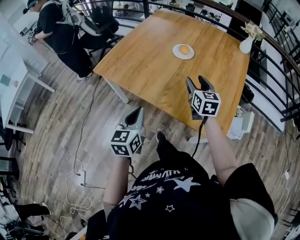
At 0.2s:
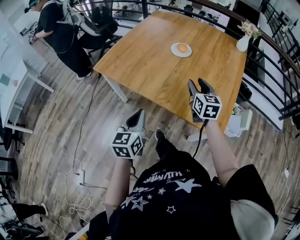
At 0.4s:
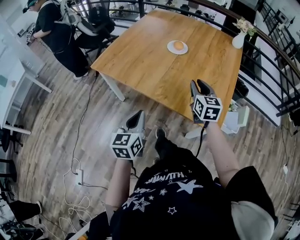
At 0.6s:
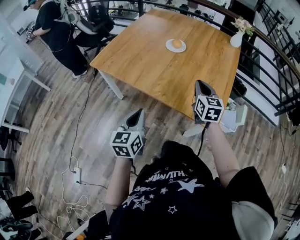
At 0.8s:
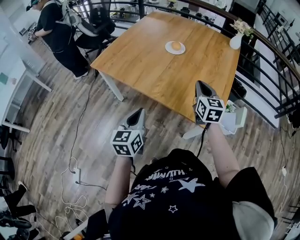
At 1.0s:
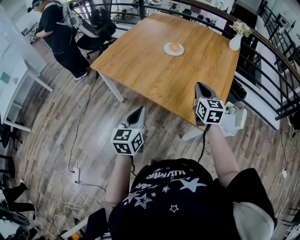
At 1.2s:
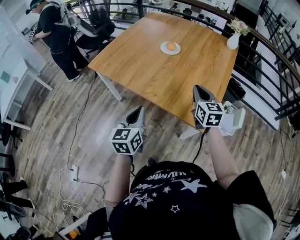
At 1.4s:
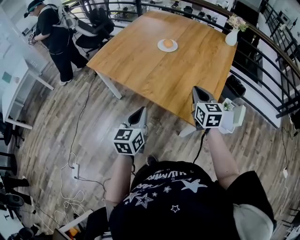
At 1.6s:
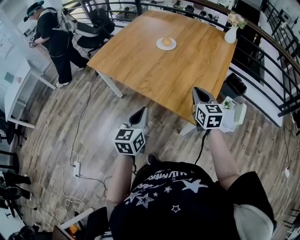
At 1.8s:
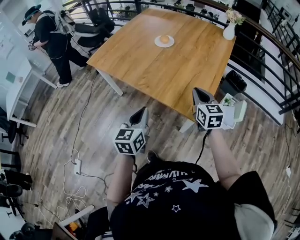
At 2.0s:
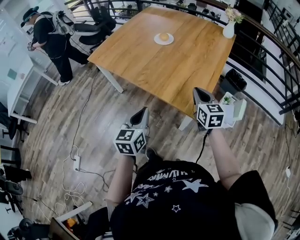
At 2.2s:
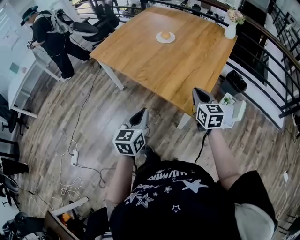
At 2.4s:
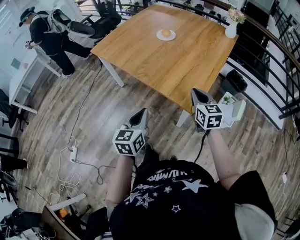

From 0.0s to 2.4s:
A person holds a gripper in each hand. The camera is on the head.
From 0.0s to 1.2s: The left gripper is displaced to the right and backward by some 10 cm. Meanwhile the right gripper goes about 15 cm backward and to the right, and closes up.
From 1.2s to 2.4s: The left gripper goes roughly 20 cm to the right and backward. Meanwhile the right gripper travels backward and to the right by roughly 15 cm.

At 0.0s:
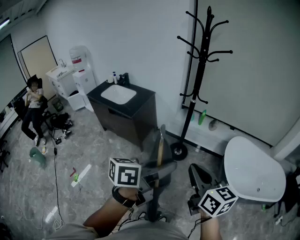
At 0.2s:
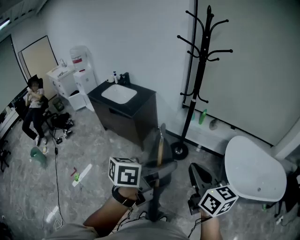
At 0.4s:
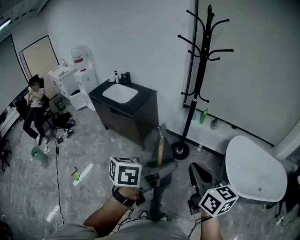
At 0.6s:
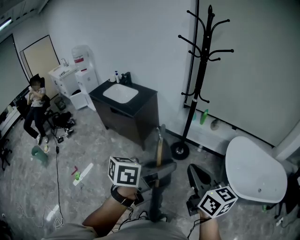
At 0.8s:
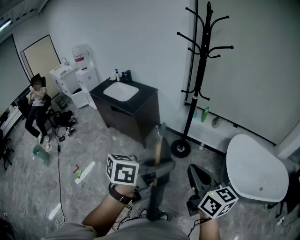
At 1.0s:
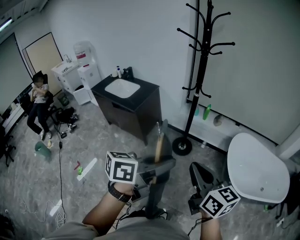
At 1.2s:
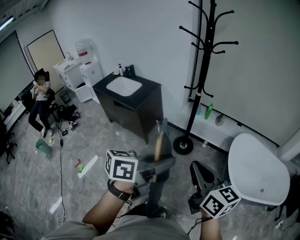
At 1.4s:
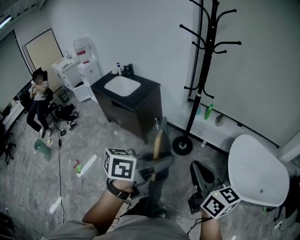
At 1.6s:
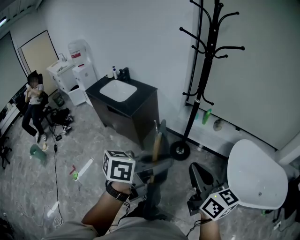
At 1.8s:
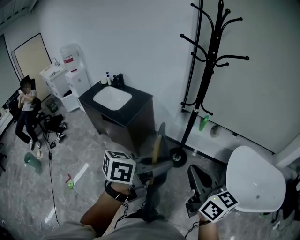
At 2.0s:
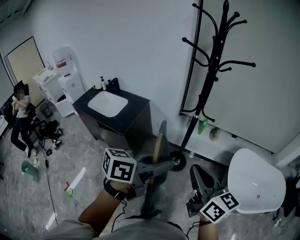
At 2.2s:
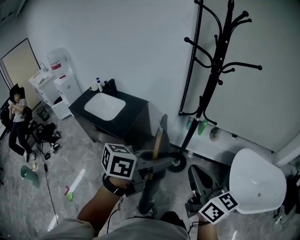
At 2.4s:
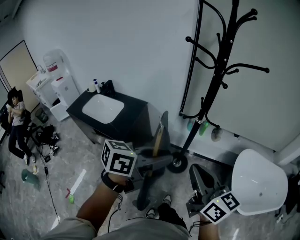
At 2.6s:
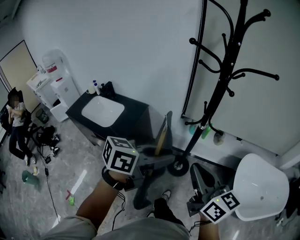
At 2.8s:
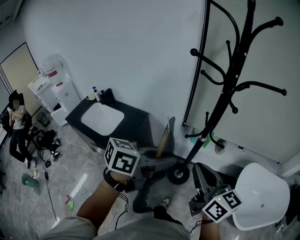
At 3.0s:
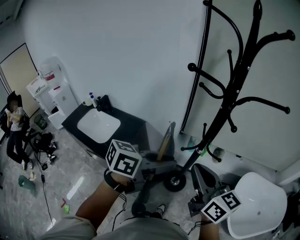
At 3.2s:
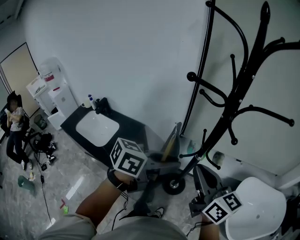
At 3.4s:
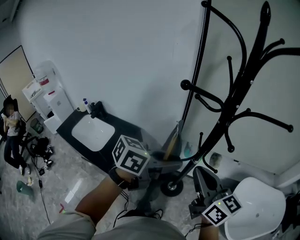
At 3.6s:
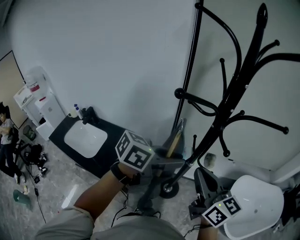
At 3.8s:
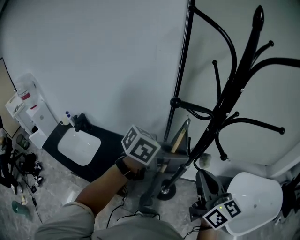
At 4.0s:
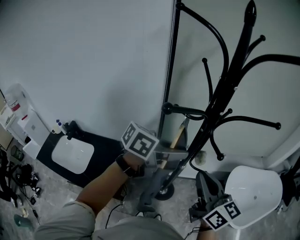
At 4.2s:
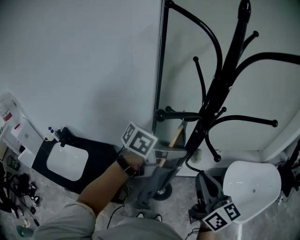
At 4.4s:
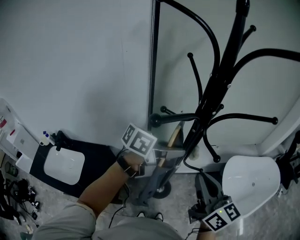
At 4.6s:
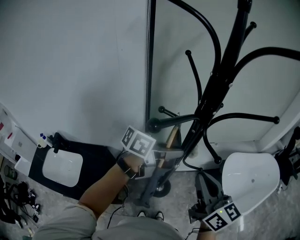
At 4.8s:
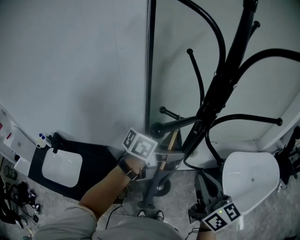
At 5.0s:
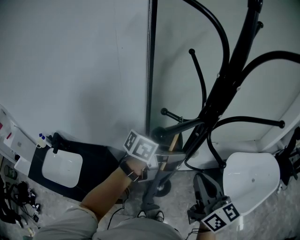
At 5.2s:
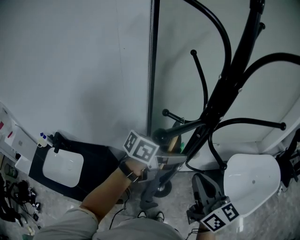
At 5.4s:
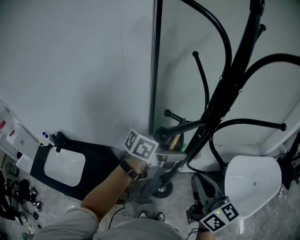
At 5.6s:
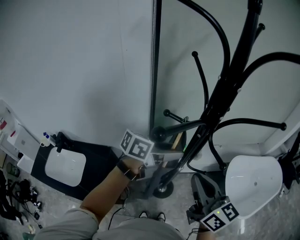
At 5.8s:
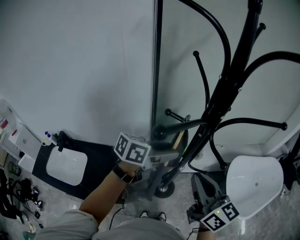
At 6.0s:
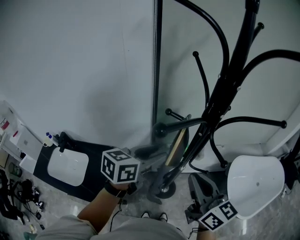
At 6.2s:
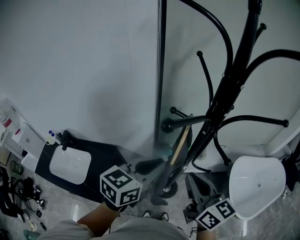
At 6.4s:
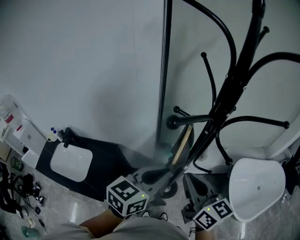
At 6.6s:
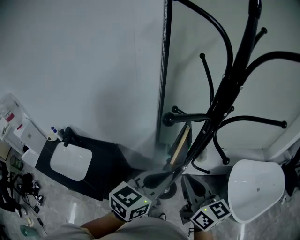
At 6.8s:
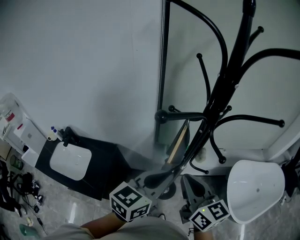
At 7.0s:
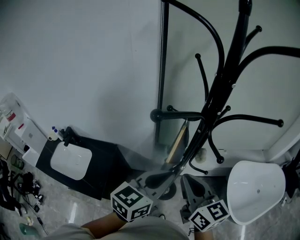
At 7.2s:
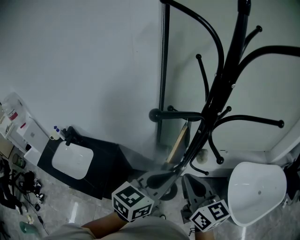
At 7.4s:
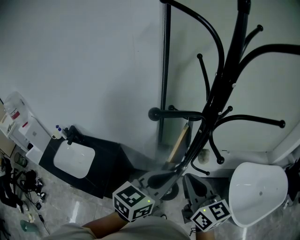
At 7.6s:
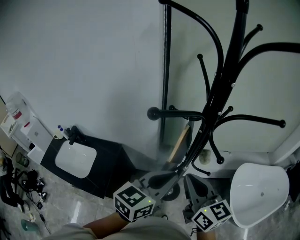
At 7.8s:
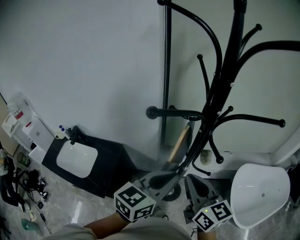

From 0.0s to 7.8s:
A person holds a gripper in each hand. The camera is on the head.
From 0.0s to 1.6s: The grippers both shift forward by approximately 10 cm.
From 1.6s to 3.2s: Both grippers are carried forward and to the left, some 40 cm. The left gripper turns by about 20 degrees.
From 3.2s to 4.6s: The right gripper changes place by some 5 cm, and swivels some 30 degrees. Meanwhile the left gripper moves approximately 20 cm, and changes its angle by roughly 30 degrees.
From 4.6s to 6.2s: The left gripper travels backward and to the left by roughly 10 cm, turns by approximately 40 degrees, and opens, then closes once more. The right gripper travels to the left by approximately 5 cm.
From 6.2s to 7.8s: The left gripper moves to the right and backward, roughly 10 cm.

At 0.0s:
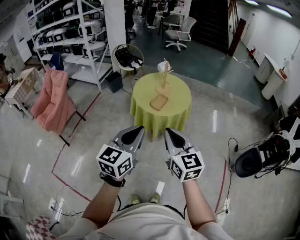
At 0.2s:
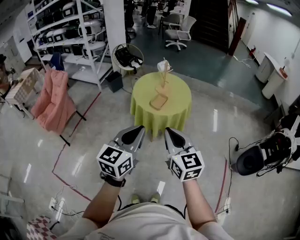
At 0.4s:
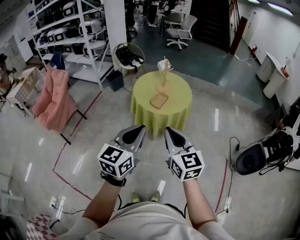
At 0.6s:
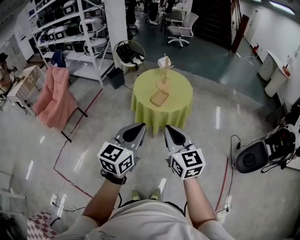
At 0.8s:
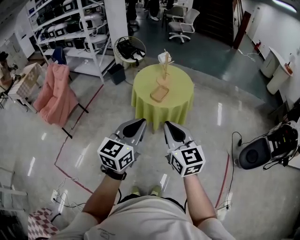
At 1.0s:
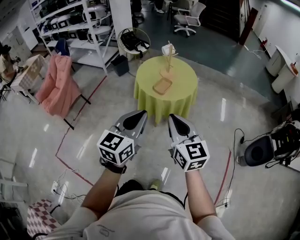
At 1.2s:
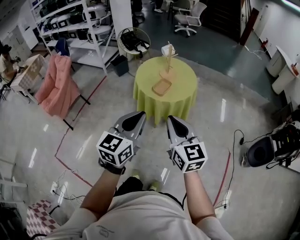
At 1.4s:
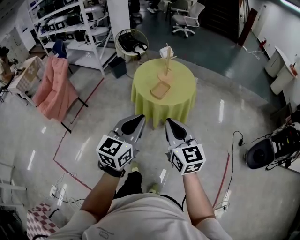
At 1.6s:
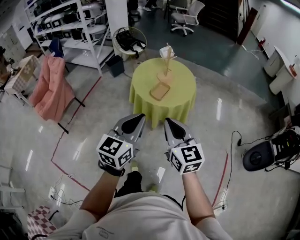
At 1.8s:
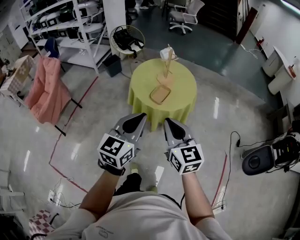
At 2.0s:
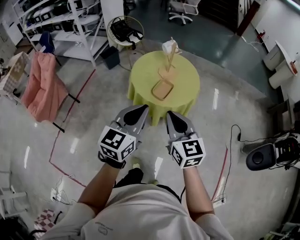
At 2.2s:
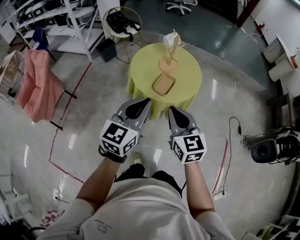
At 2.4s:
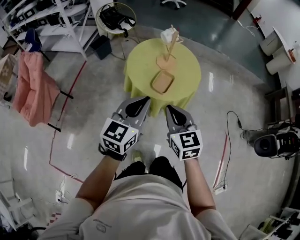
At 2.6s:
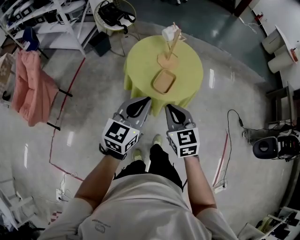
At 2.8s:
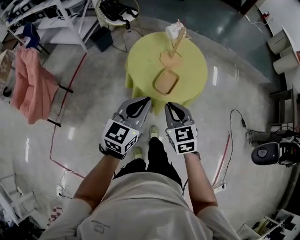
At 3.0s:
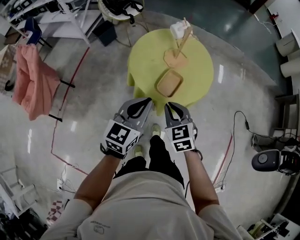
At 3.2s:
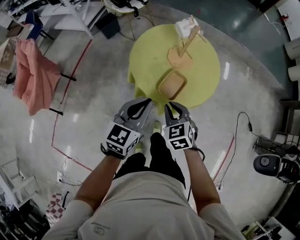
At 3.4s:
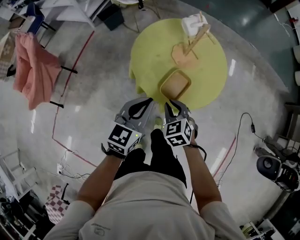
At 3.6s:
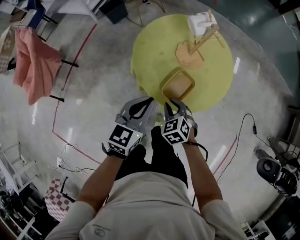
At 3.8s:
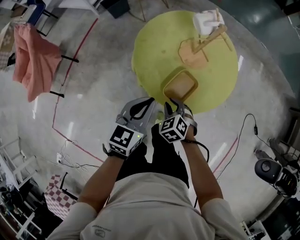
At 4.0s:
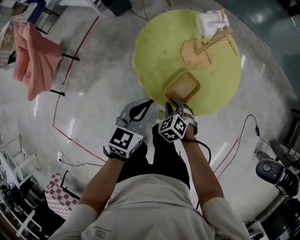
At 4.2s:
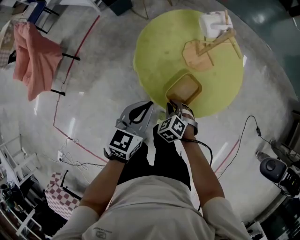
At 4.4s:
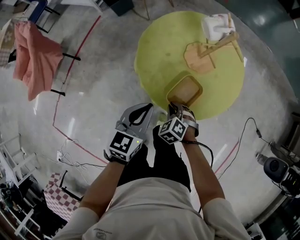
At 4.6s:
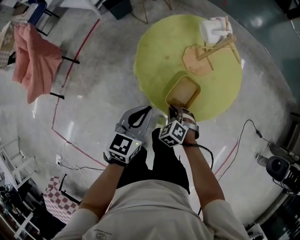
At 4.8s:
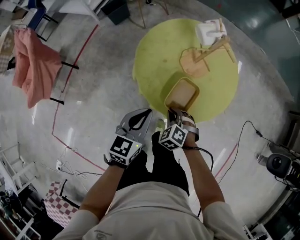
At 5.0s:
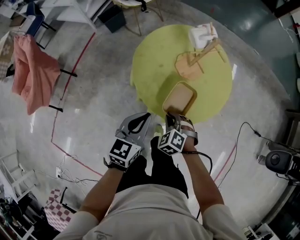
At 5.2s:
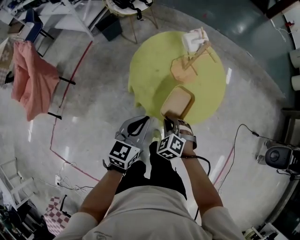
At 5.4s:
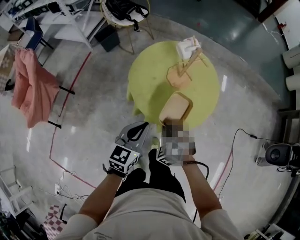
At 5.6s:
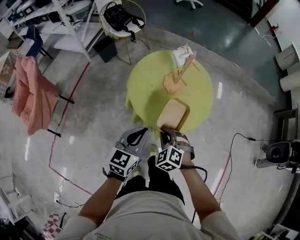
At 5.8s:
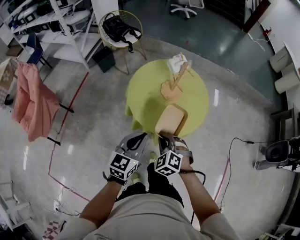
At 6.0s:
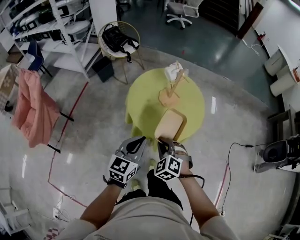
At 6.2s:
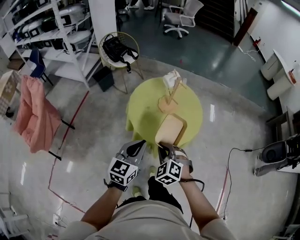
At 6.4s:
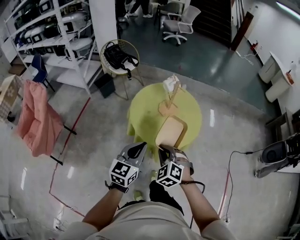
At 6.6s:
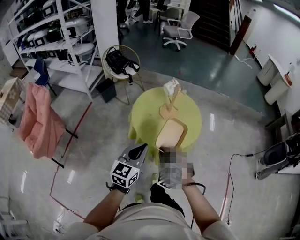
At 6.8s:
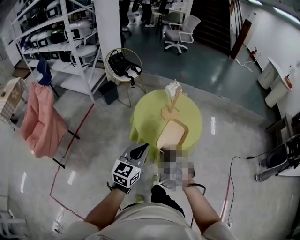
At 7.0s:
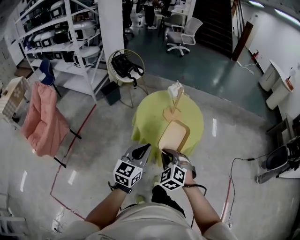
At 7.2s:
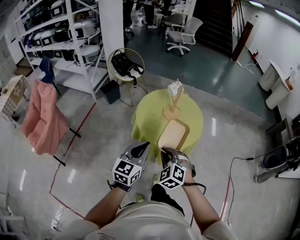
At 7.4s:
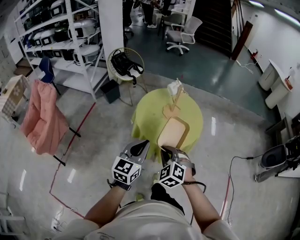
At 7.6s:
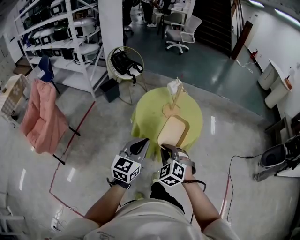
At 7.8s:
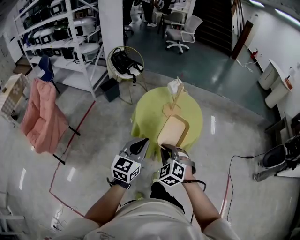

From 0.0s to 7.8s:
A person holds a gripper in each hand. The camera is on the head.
From 0.0s to 1.6s: The two grippers go approximately 10 cm forward.
From 1.6s to 3.2s: The two grippers go about 40 cm forward and downward. The right gripper angles its fingers downward, by some 40 degrees.
From 3.2s to 4.6s: The grippers both shift downward by some 15 cm. The right gripper swivels approximately 30 degrees.
From 4.6s to 6.2s: The left gripper goes roughly 15 cm upward and backward. Meanwhile the right gripper goes roughly 25 cm upward and backward.
From 6.2s to 7.8s: The left gripper is displaced upward by about 5 cm; the right gripper heads backward and upward, covering about 10 cm.

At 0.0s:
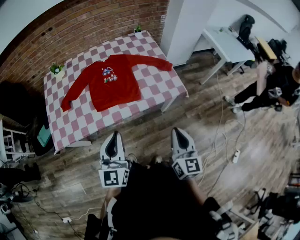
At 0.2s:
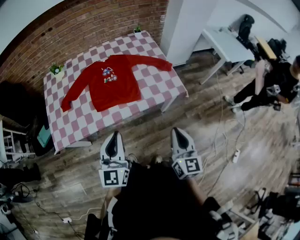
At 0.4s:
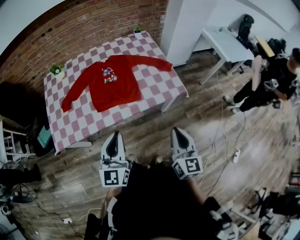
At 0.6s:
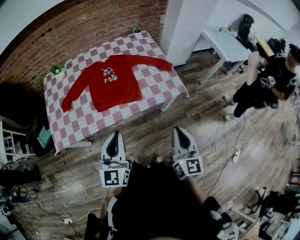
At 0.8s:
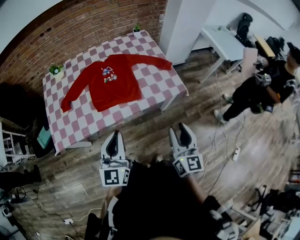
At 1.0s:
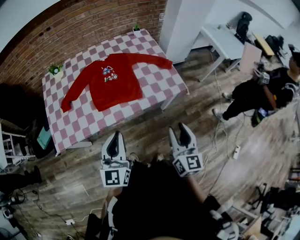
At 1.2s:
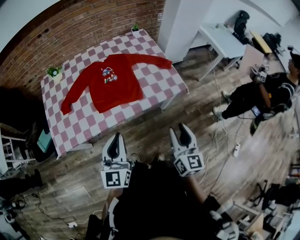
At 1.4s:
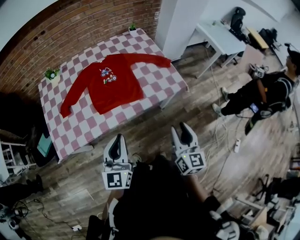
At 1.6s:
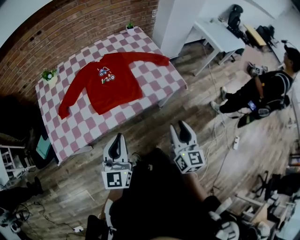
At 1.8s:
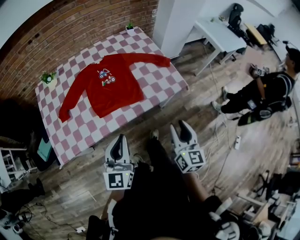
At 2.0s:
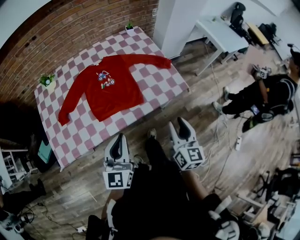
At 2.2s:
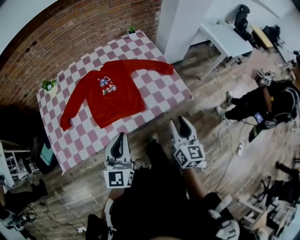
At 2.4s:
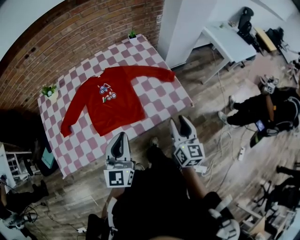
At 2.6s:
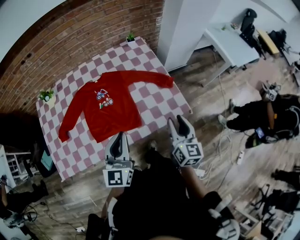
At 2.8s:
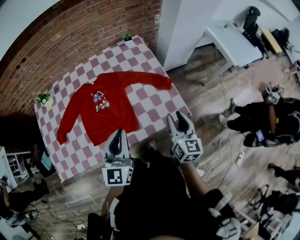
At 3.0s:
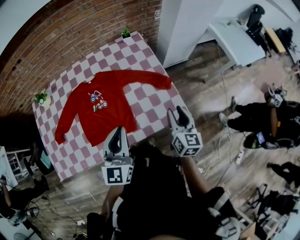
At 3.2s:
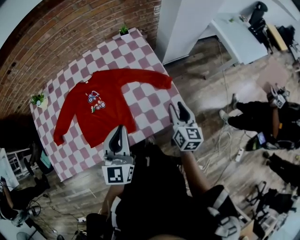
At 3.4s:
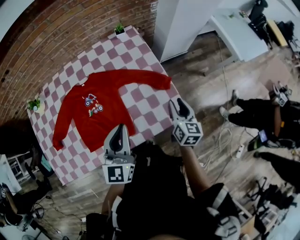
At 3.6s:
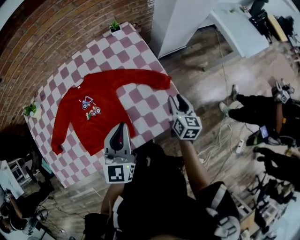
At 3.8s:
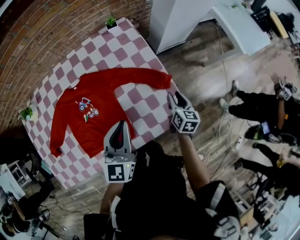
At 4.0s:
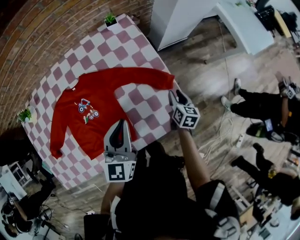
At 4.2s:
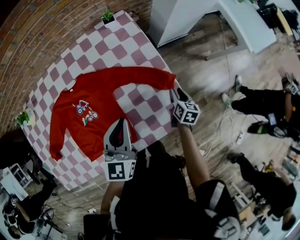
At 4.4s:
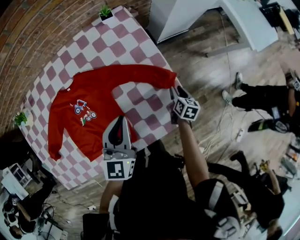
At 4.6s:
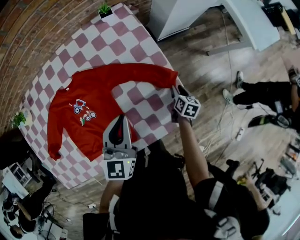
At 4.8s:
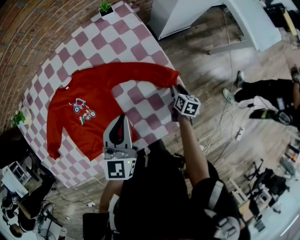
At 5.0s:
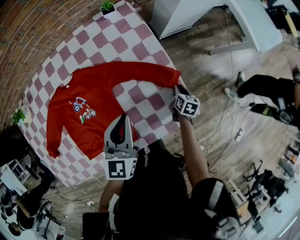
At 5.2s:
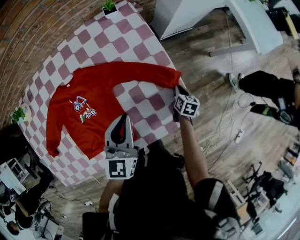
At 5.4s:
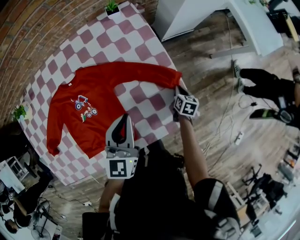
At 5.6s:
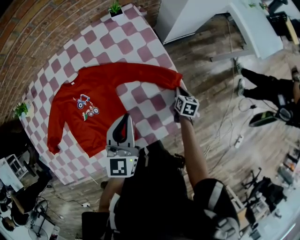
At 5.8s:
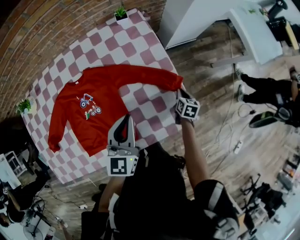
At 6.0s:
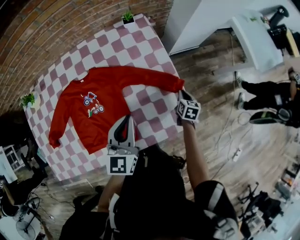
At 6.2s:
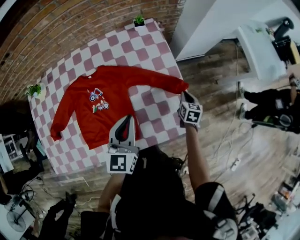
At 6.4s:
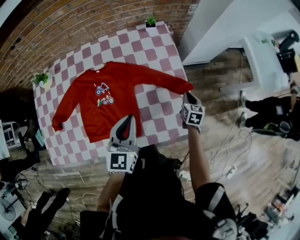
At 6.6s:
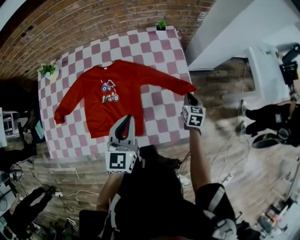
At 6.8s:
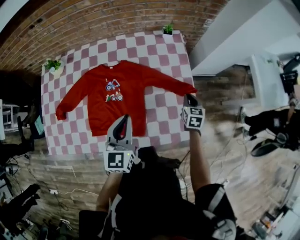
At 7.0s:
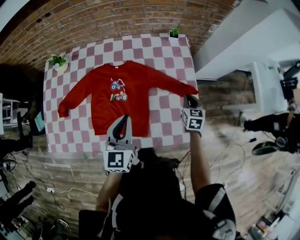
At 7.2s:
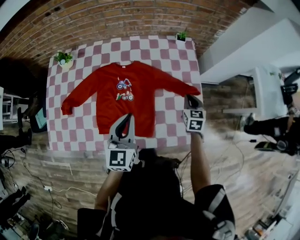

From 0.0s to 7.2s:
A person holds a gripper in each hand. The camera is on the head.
From 0.0s to 1.4s: The right gripper opens; the left gripper ends up about 5 cm from where it was.
From 1.4s to 2.8s: The two grippers go roughly 30 cm forward.
From 2.8s to 4.4s: The left gripper is displaced forward and downward by about 25 cm. Meanwhile the right gripper shifts roughly 40 cm downward and forward, and points its fingers about 30 degrees further downward.
From 4.4s to 5.8s: The right gripper closes.
From 5.8s to 7.2s: The left gripper goes approximately 15 cm to the left and backward, while the right gripper heads to the left and upward, covering about 25 cm, and swivels about 40 degrees.
